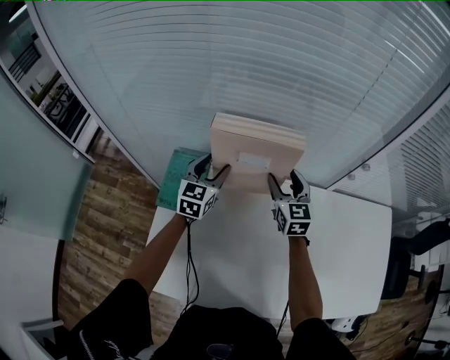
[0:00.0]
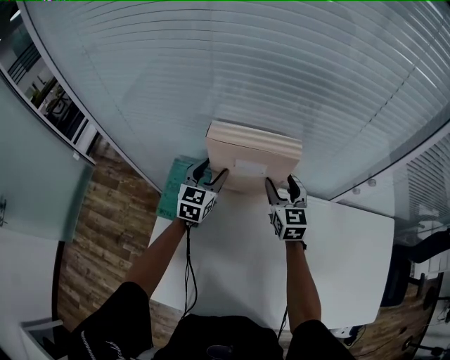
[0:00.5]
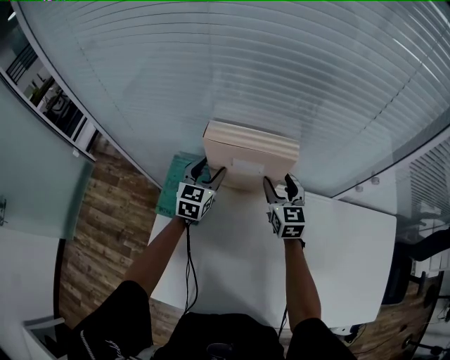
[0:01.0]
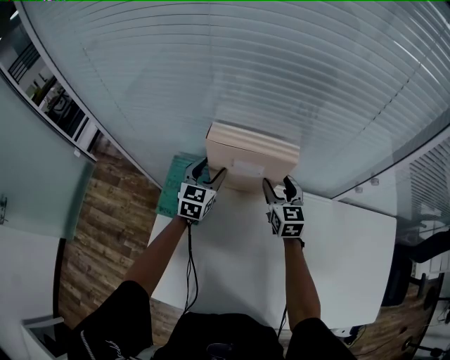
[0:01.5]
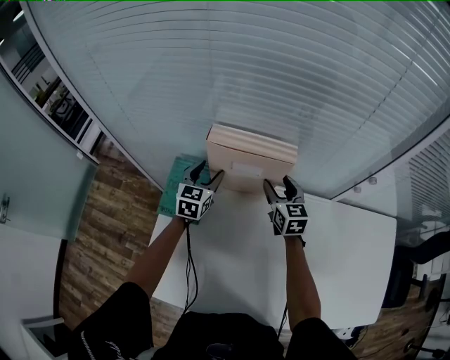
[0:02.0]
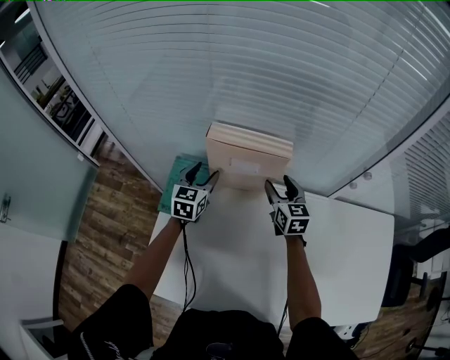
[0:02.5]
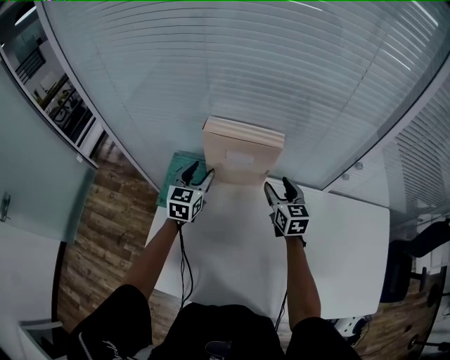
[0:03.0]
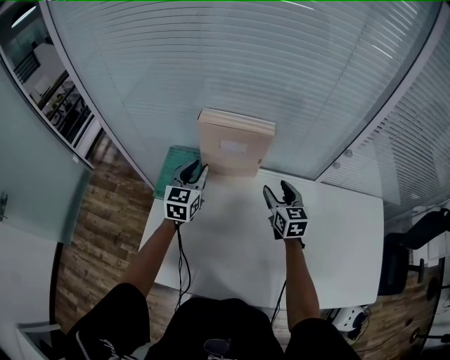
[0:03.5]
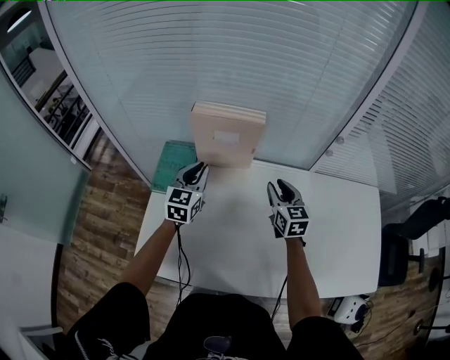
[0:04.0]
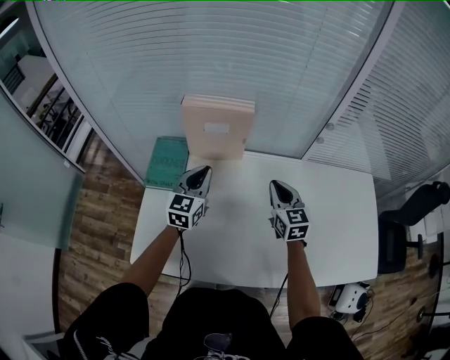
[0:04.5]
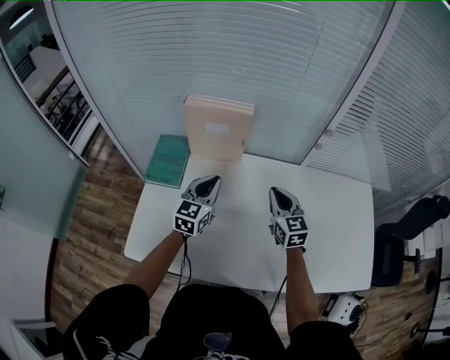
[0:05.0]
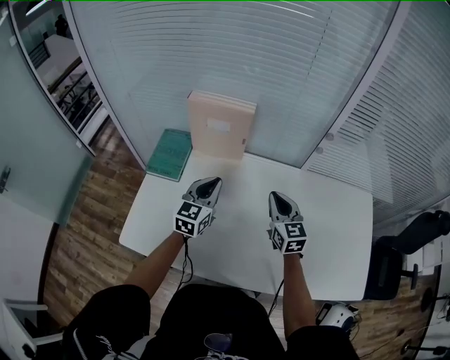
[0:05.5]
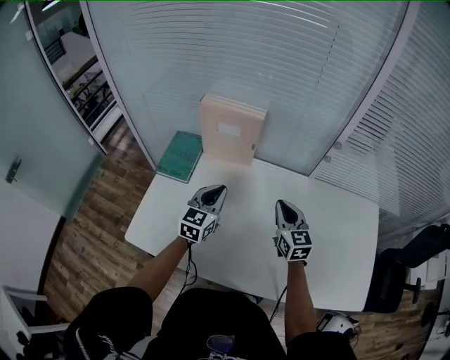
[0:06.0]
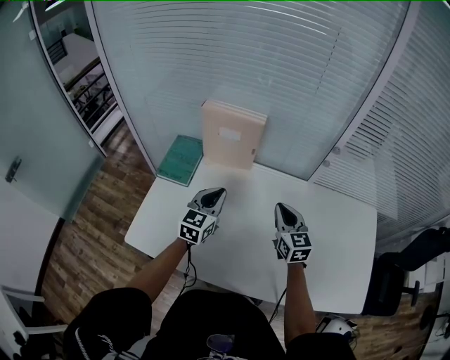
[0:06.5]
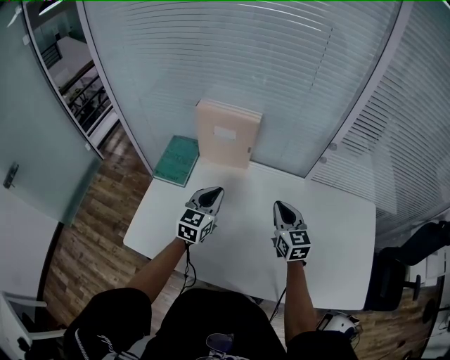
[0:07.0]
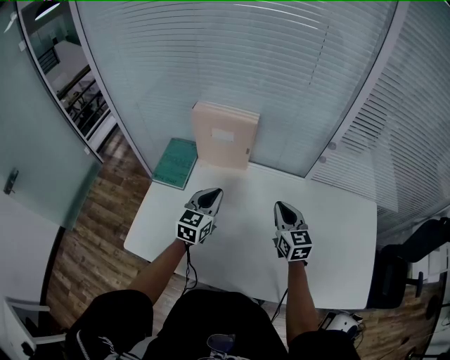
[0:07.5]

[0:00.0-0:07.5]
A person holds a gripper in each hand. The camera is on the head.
0:00.0 to 0:02.0: The left gripper moves roughly 5 cm, while the right gripper shifts about 5 cm downward.
0:02.0 to 0:04.0: The right gripper moves backward and to the right, about 15 cm, and closes; the left gripper shifts approximately 15 cm backward and upward, and closes its fingers.
0:04.0 to 0:05.5: The left gripper travels to the right and backward by roughly 15 cm, while the right gripper goes approximately 10 cm backward and to the right, and closes up.
0:05.5 to 0:07.5: The grippers stay close to where they were, moving slightly.

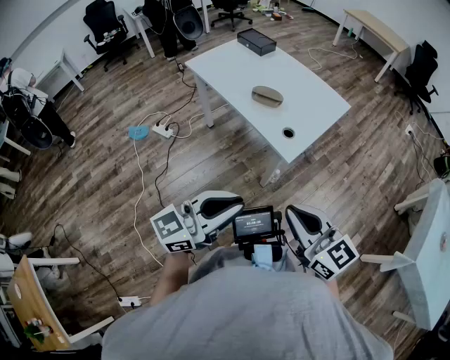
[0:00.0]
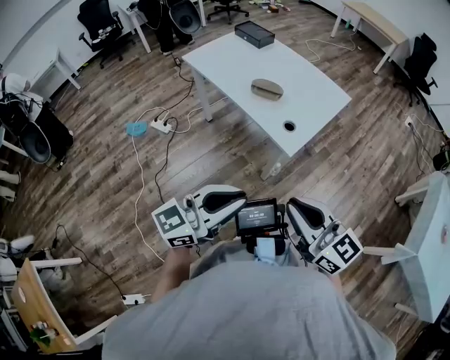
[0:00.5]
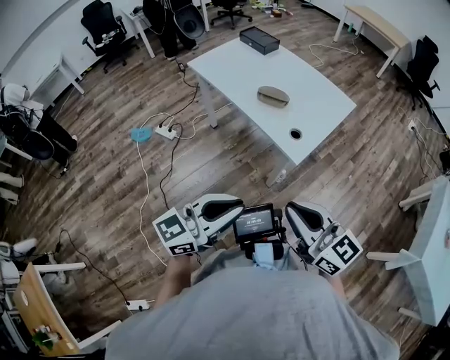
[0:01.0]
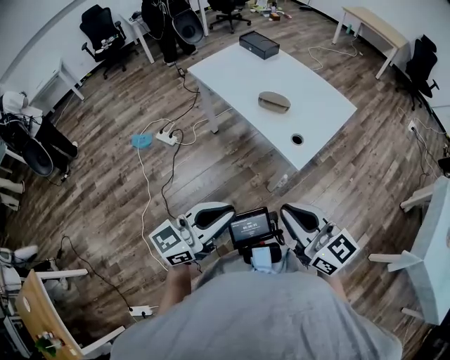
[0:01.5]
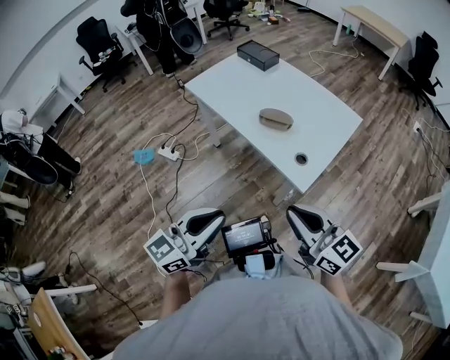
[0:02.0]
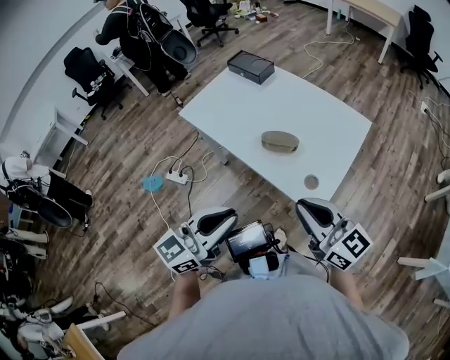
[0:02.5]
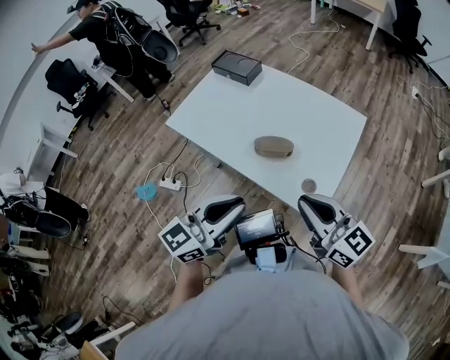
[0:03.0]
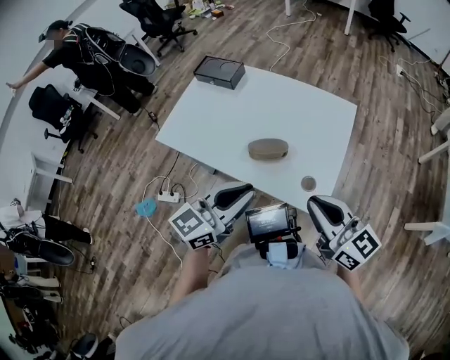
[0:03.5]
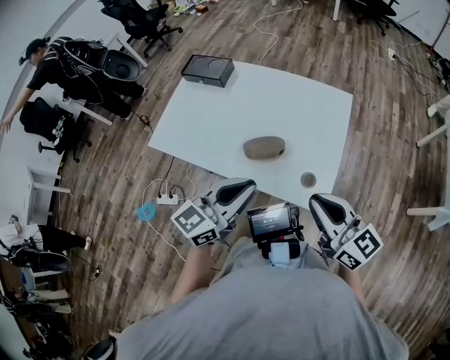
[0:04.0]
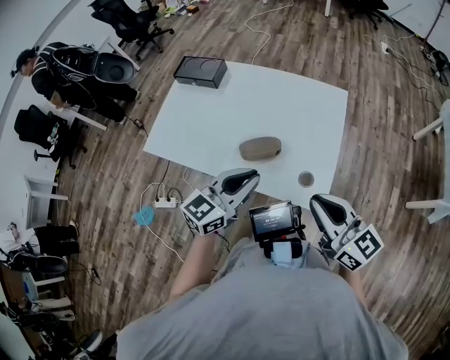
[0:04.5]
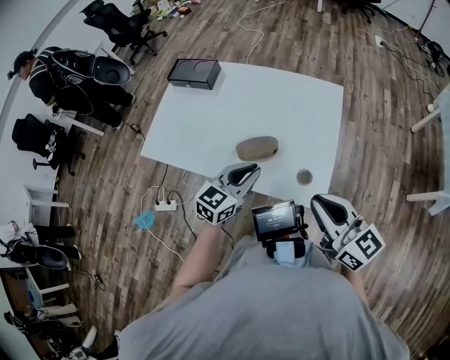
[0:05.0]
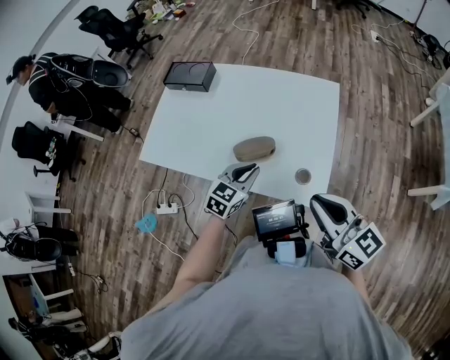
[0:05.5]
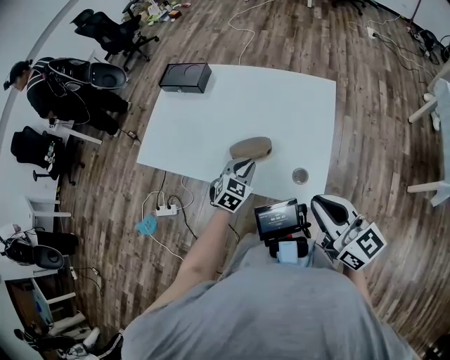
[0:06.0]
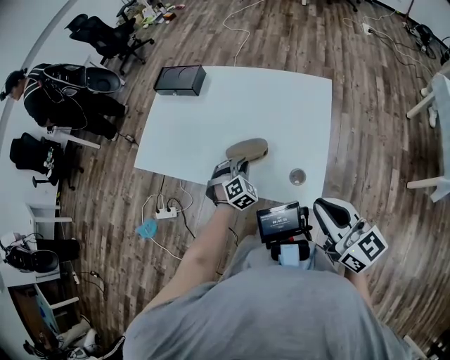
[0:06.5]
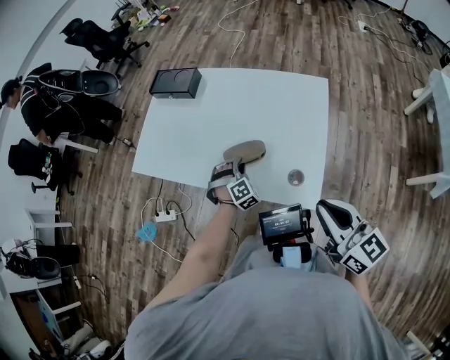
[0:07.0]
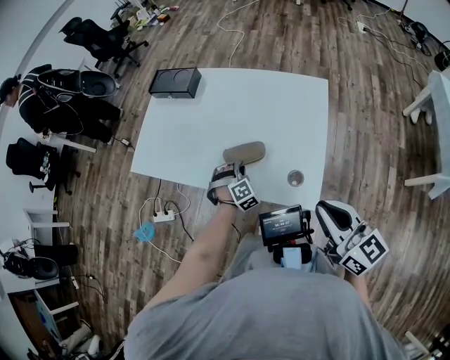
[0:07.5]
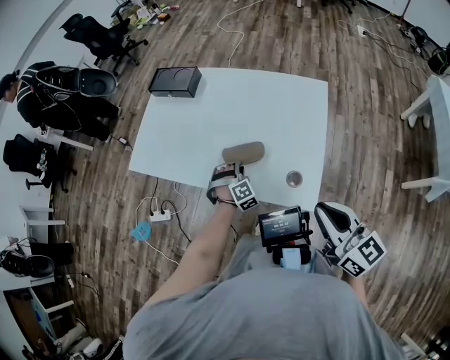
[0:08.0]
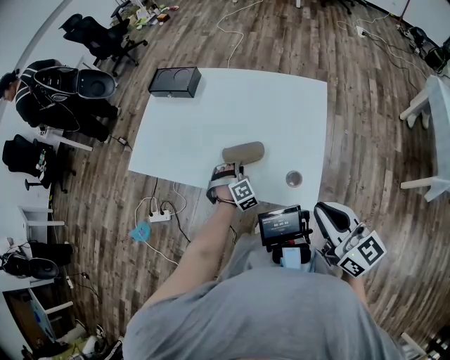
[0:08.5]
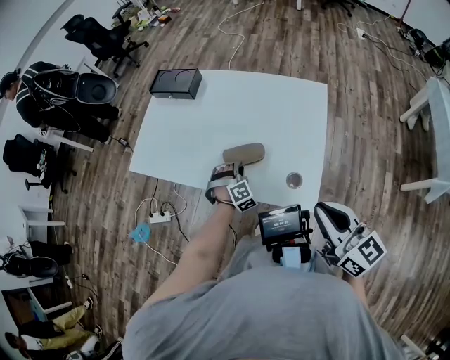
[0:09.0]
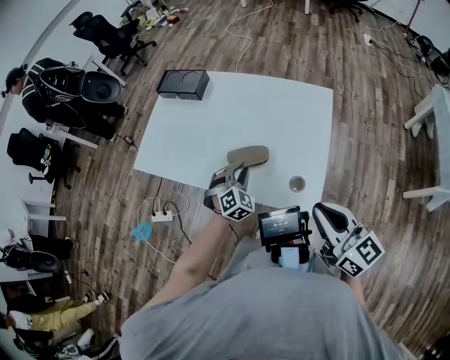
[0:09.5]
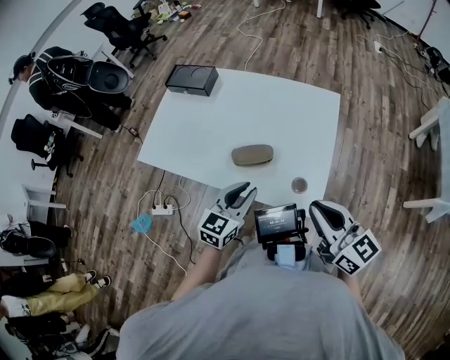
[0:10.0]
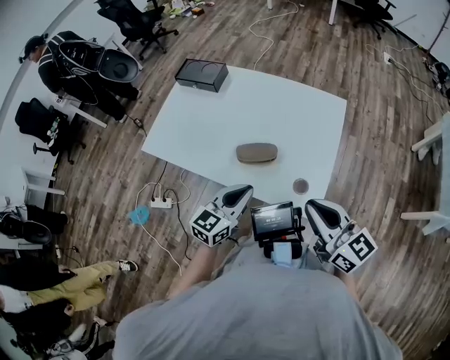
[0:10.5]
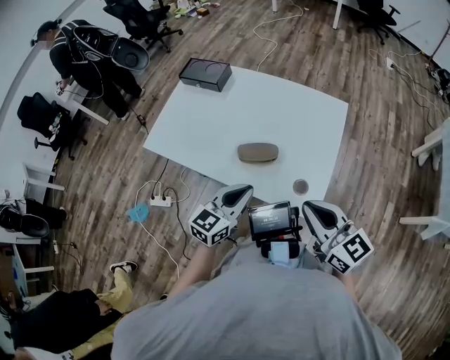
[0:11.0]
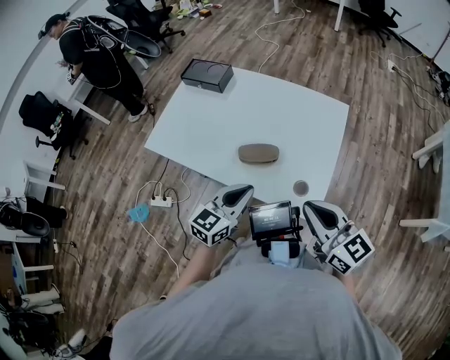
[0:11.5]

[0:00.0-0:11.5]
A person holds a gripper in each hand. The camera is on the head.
0:00.0 to 0:02.0: The right gripper is displaced forward and to the left by some 15 cm, while the left gripper travels to the left and forward by roughly 15 cm.
0:02.0 to 0:04.0: The right gripper shifts by approximately 20 cm, and rotates approximately 30 degrees. The left gripper shifts by about 35 cm, and swivels approximately 30 degrees.
0:04.0 to 0:06.0: The left gripper heads downward and forward, covering approximately 25 cm, and tips its fingers downward by approximately 40 degrees.
0:06.0 to 0:07.5: The left gripper travels downward by about 10 cm, and changes its angle by some 50 degrees.
0:07.5 to 0:09.5: The left gripper is displaced upward by some 10 cm, and turns by some 30 degrees.
0:09.5 to 0:11.5: The left gripper travels upward and backward by approximately 20 cm, and swivels roughly 60 degrees.

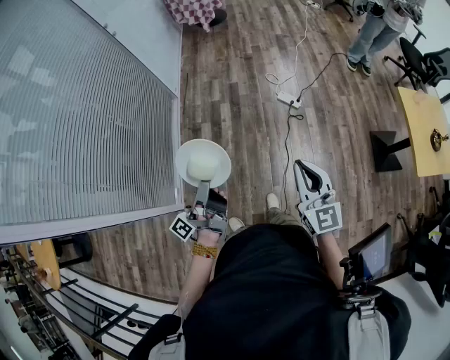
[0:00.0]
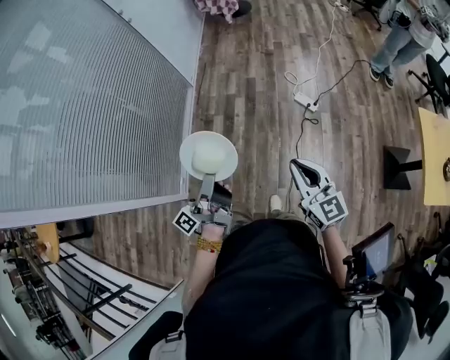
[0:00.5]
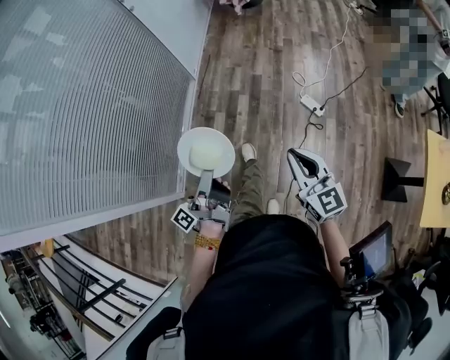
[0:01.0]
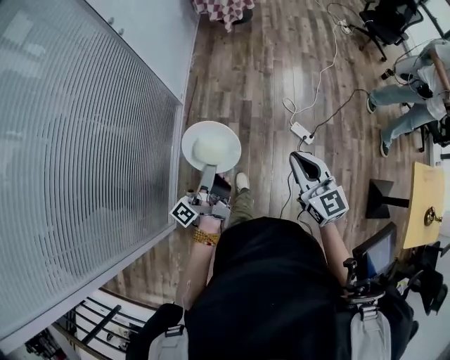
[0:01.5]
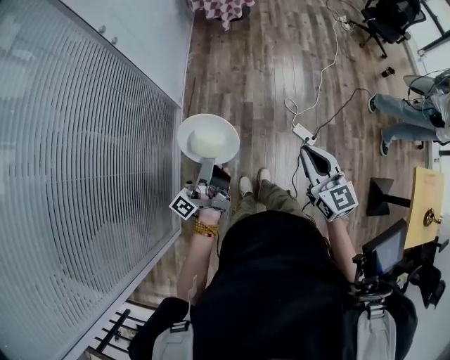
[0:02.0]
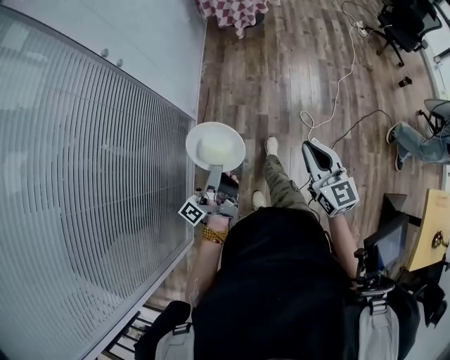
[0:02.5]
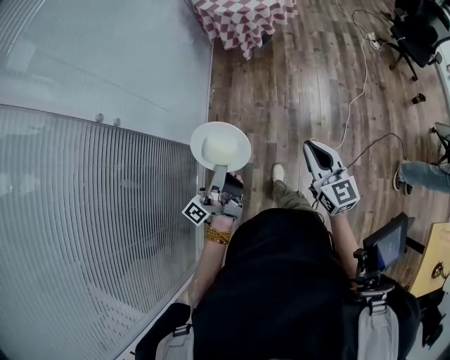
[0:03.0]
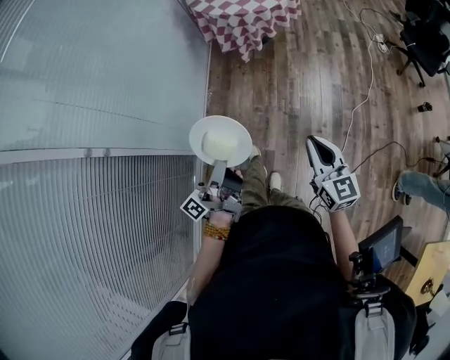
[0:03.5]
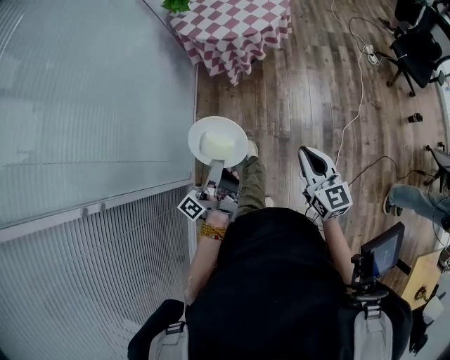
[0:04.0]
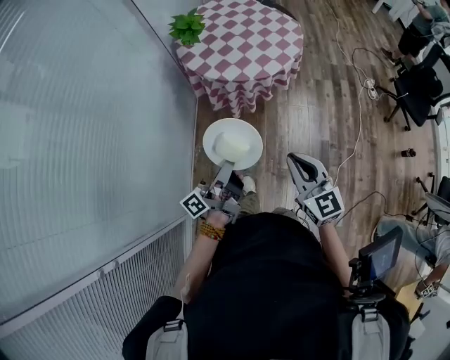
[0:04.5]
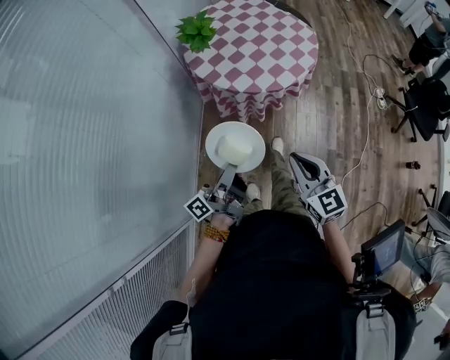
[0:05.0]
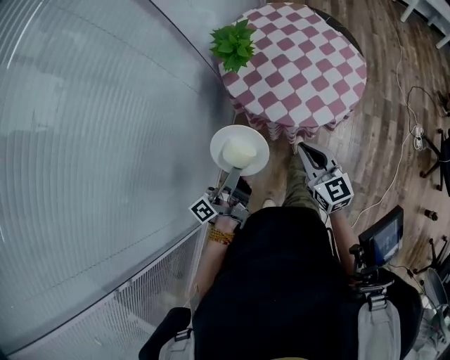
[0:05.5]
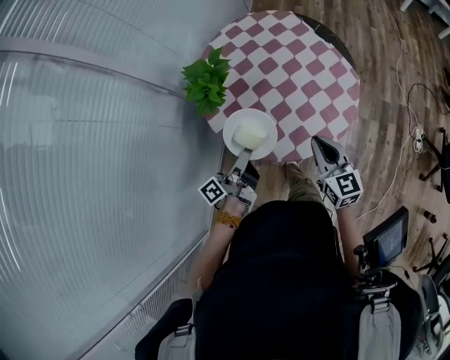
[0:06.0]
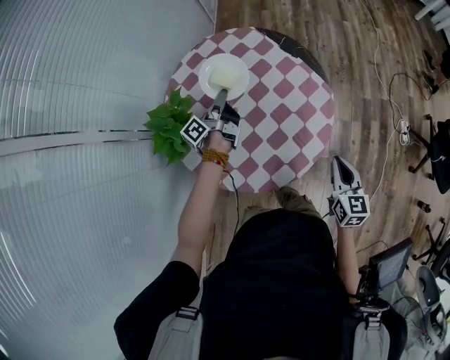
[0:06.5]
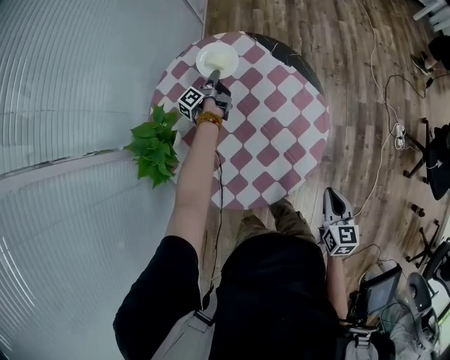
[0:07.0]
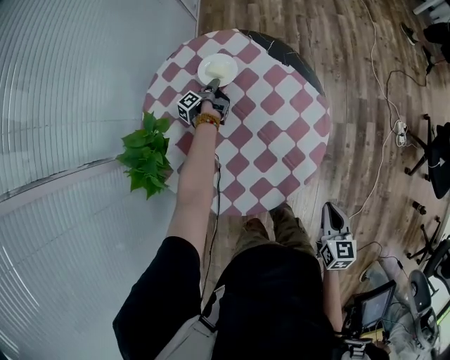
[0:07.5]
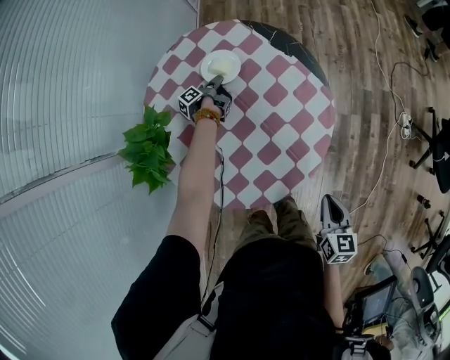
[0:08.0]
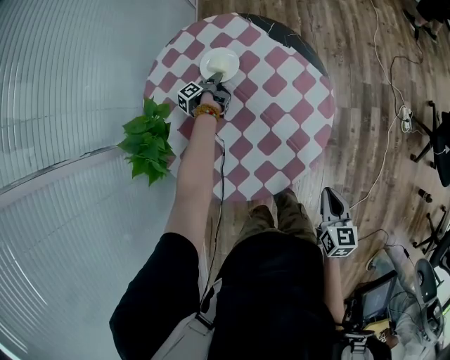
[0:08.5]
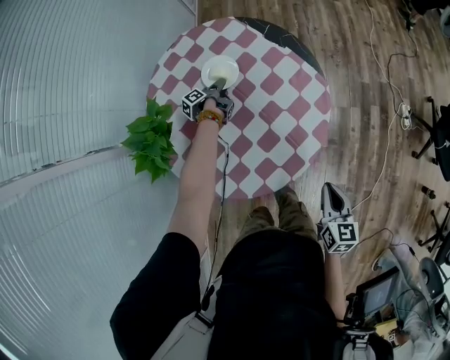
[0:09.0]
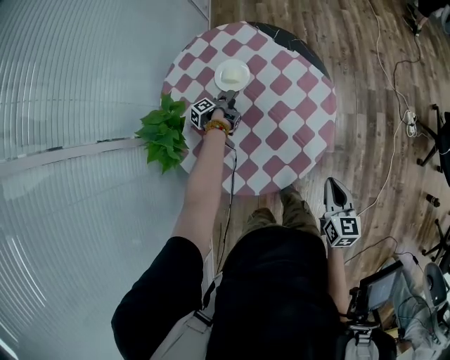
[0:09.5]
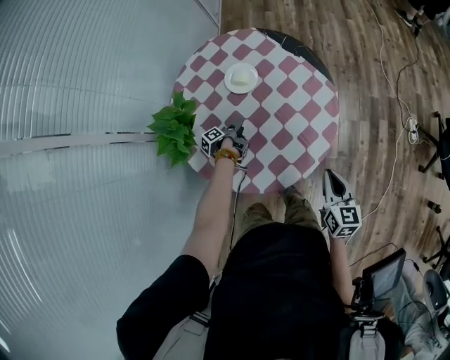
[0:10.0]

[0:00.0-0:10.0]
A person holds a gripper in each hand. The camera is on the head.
0:00.0 to 0:02.0: The pair of grippers is taken forward, about 50 cm.
0:02.0 to 0:04.0: The two grippers travel together, forward, roughly 60 cm.
0:04.0 to 0:06.0: The two grippers travel together, forward, about 70 cm.
0:06.0 to 0:08.0: The left gripper shifts approximately 60 cm forward and downward, and changes its angle by some 30 degrees. The right gripper heads to the right and downward, covering approximately 20 cm, and rotates about 40 degrees.
0:08.0 to 0:10.0: The right gripper changes place by approximately 5 cm, while the left gripper shifts roughly 25 cm backward, and opens its fingers.
